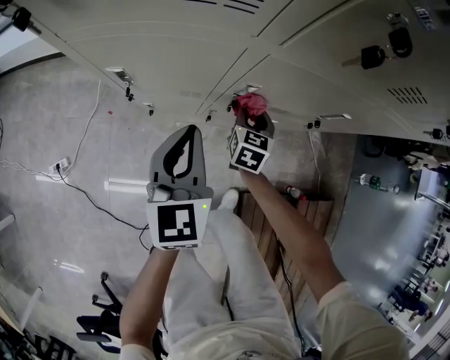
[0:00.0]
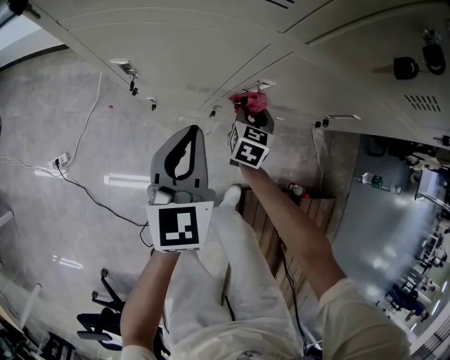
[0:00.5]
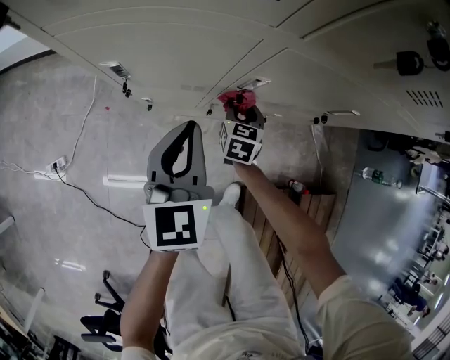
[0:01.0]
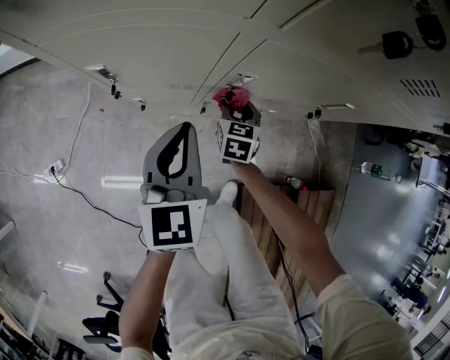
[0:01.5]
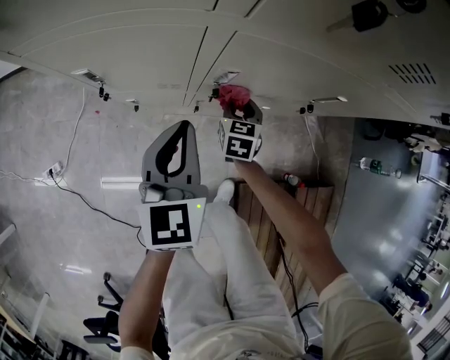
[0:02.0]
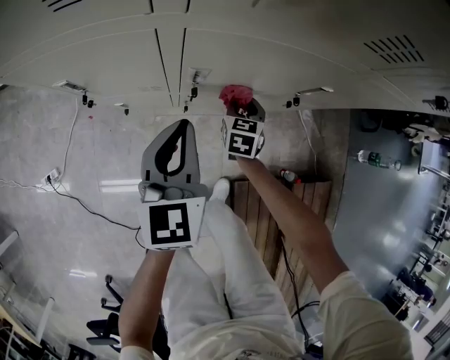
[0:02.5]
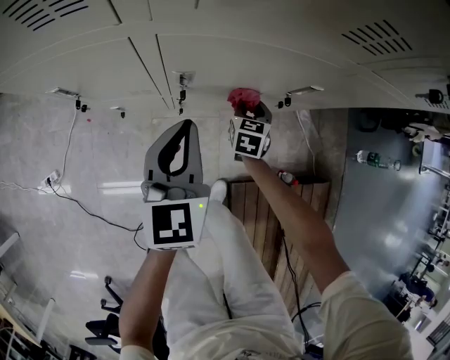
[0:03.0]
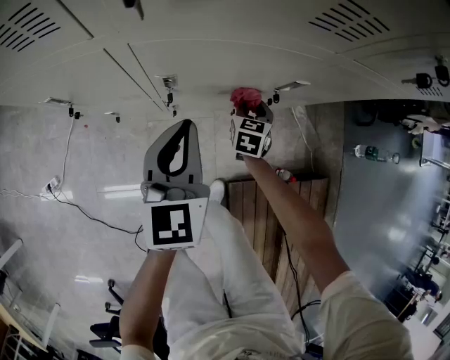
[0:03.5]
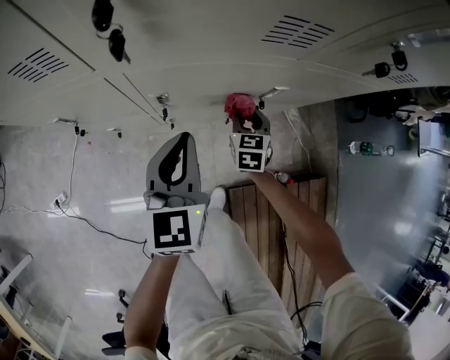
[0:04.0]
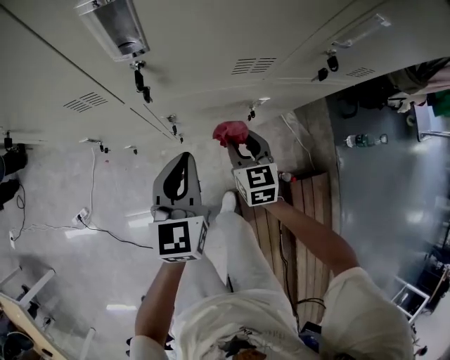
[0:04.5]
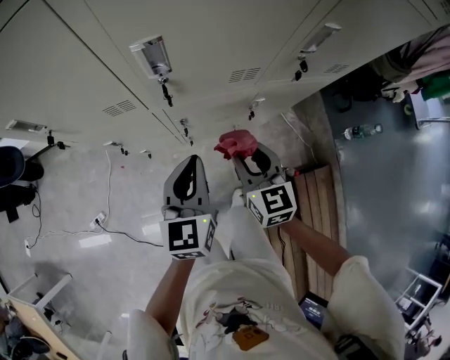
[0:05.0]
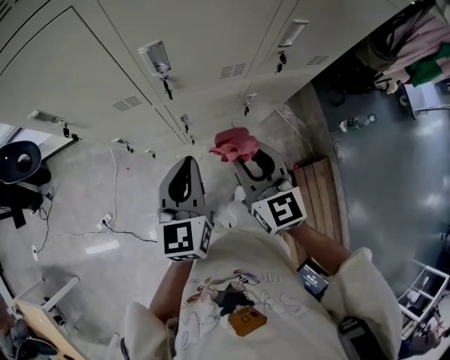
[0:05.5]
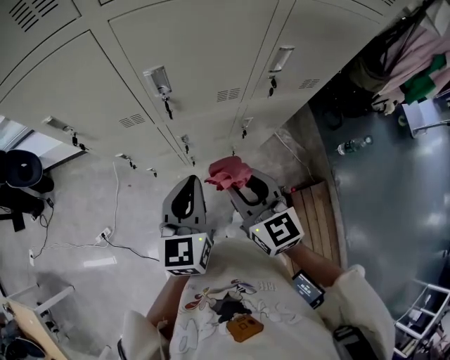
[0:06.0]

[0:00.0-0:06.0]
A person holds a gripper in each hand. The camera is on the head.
0:00.0 to 0:02.0: The right gripper heads downward, covering about 5 cm.
0:02.0 to 0:04.0: Both grippers travel together to the right and upward, about 15 cm.
0:04.0 to 0:06.0: The right gripper is displaced upward and backward by some 50 cm, and changes its angle by roughly 30 degrees. The left gripper heads upward and backward, covering approximately 30 cm.

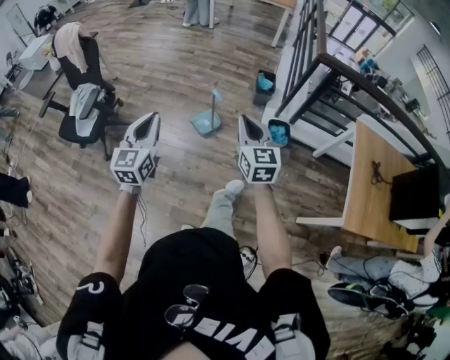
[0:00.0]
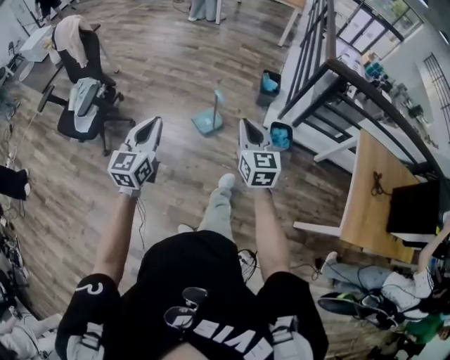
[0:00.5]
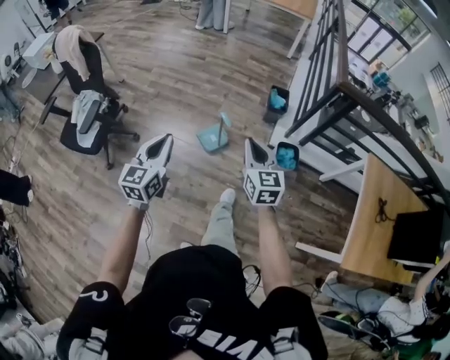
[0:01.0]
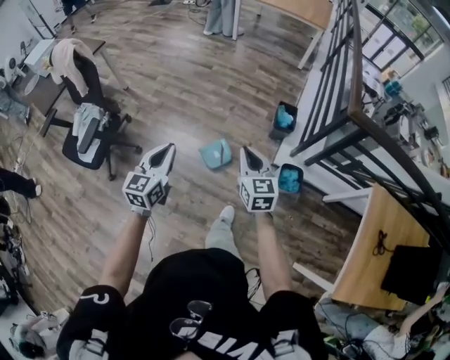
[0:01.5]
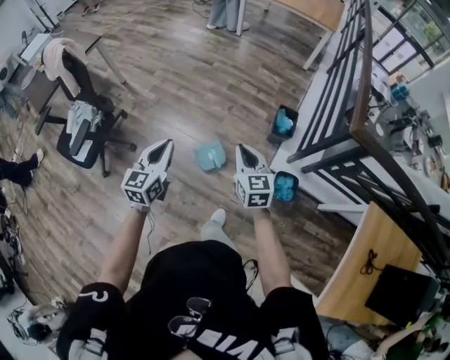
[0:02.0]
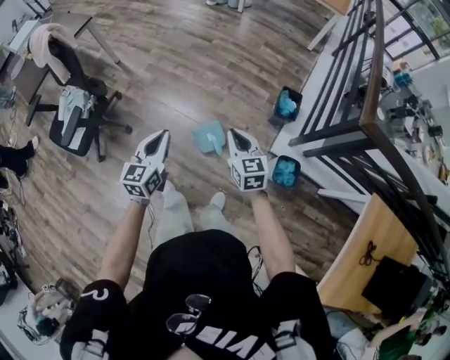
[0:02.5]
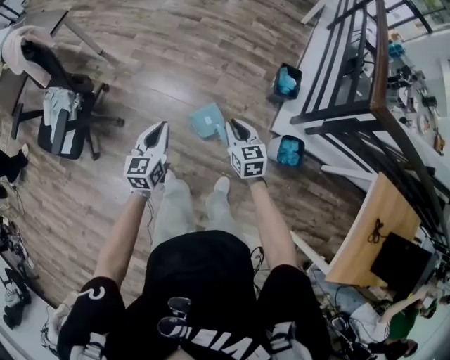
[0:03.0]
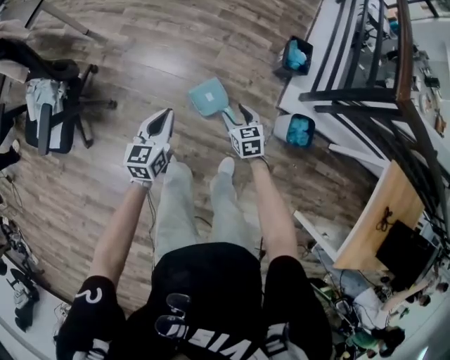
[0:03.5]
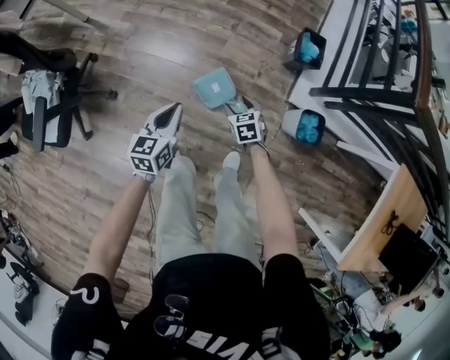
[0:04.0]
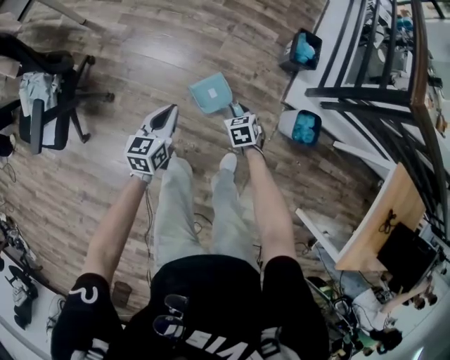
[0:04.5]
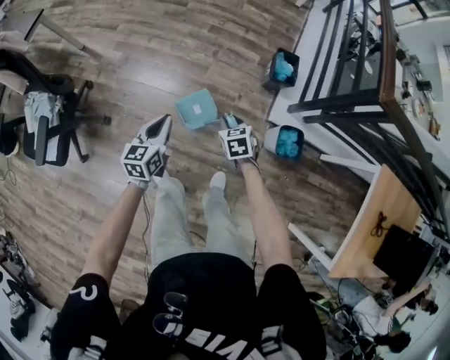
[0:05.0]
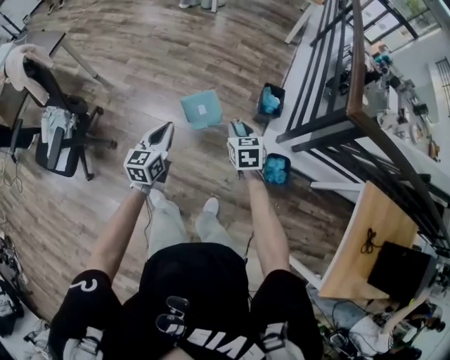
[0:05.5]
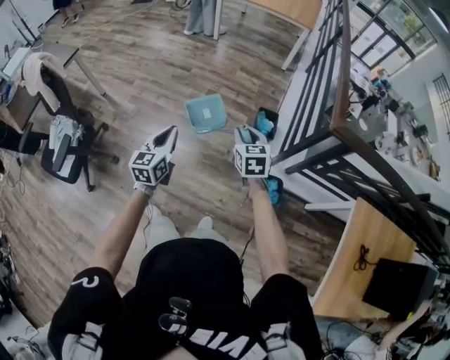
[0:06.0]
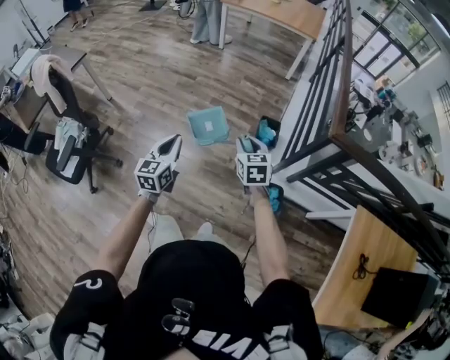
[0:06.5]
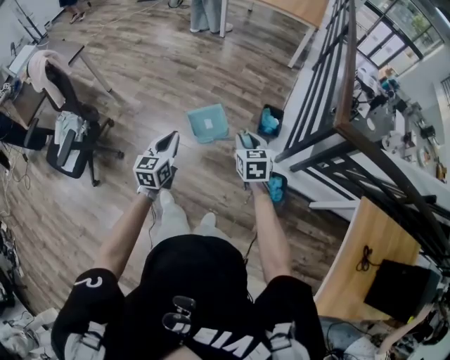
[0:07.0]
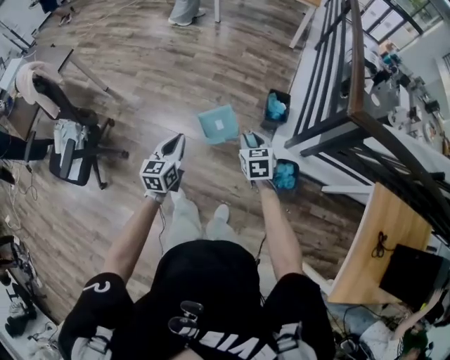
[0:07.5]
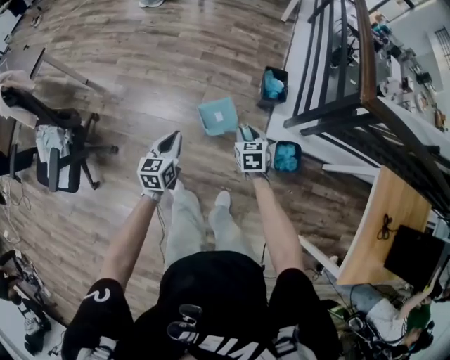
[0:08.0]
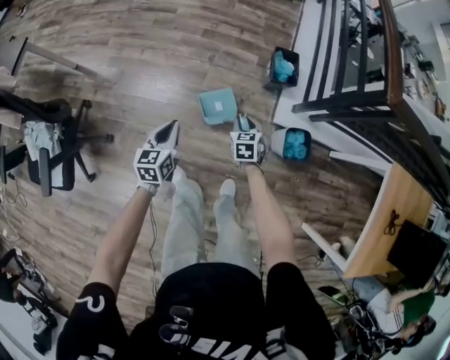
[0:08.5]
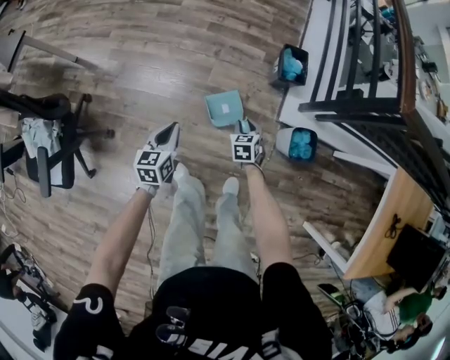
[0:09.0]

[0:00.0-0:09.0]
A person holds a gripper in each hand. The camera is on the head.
0:00.0 to 0:02.0: Both grippers travel together forward, roughly 40 cm.
0:02.0 to 0:04.5: Both grippers travel together downward, roughly 40 cm. The right gripper tilts its fingers some 40 degrees downward, and opens and closes again; the left gripper changes its angle by some 20 degrees.
0:04.5 to 0:07.0: The two grippers go some 35 cm upward and to the right. The right gripper changes its angle by some 30 degrees.
0:07.0 to 0:09.0: The right gripper is displaced downward by some 40 cm, and rotates roughly 30 degrees. The left gripper goes some 30 cm downward and to the left, and rotates about 20 degrees.

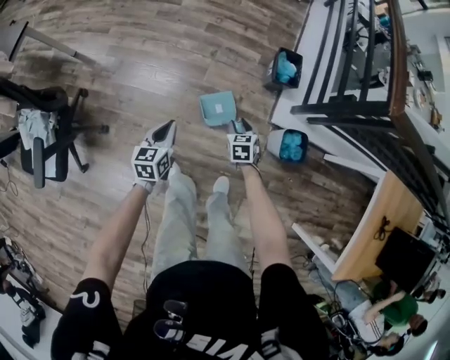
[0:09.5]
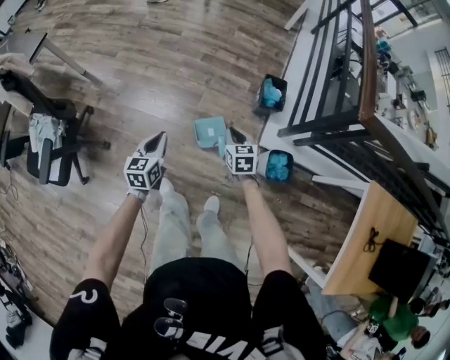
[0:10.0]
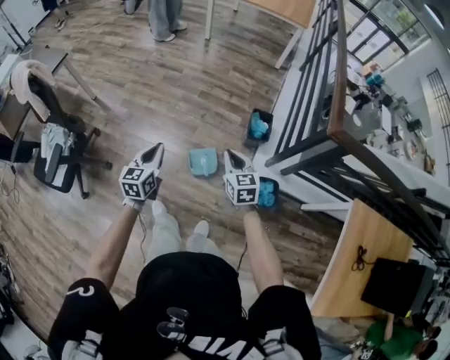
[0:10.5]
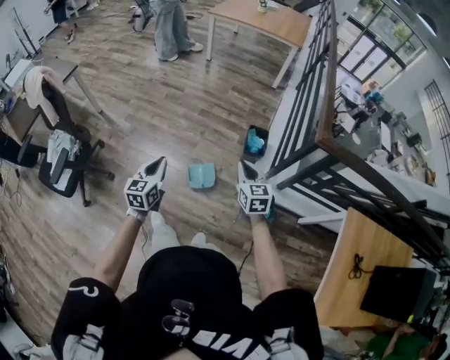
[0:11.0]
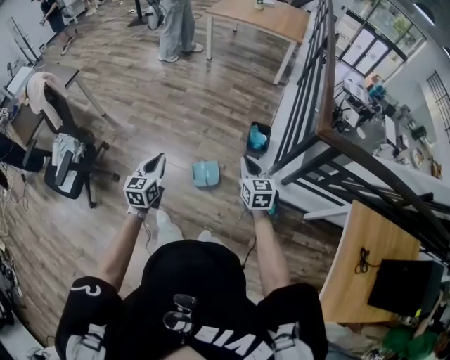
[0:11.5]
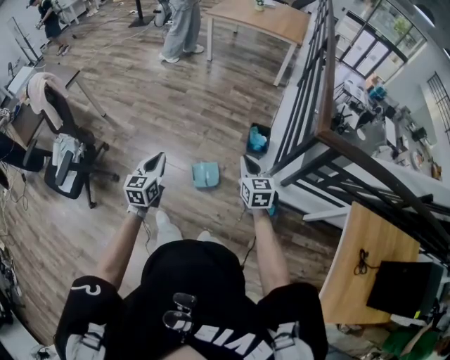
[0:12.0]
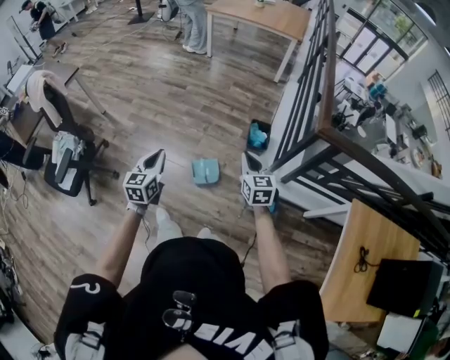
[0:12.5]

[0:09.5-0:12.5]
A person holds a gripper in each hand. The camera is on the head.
0:09.5 to 0:11.0: The right gripper goes some 40 cm upward, changes its angle by roughly 30 degrees, and closes up. Meanwhile the left gripper goes approximately 30 cm upward and backward.
0:11.0 to 0:12.5: The grippers move only a little.

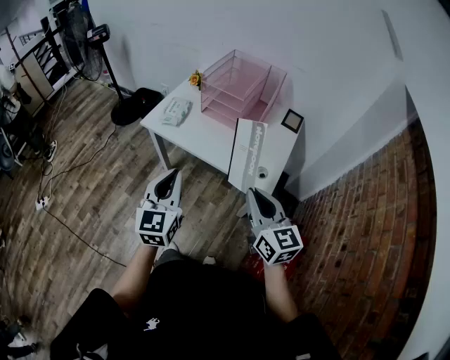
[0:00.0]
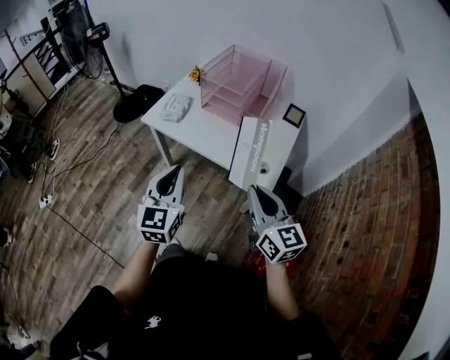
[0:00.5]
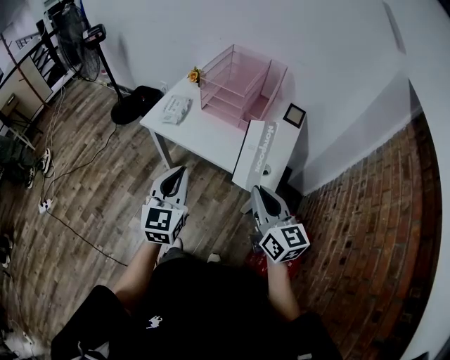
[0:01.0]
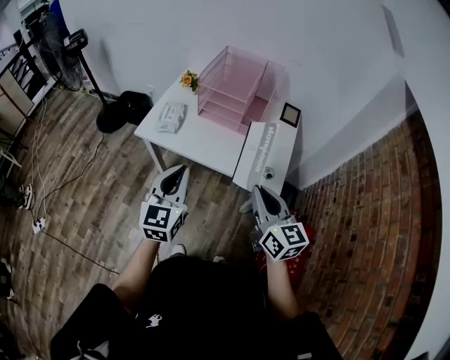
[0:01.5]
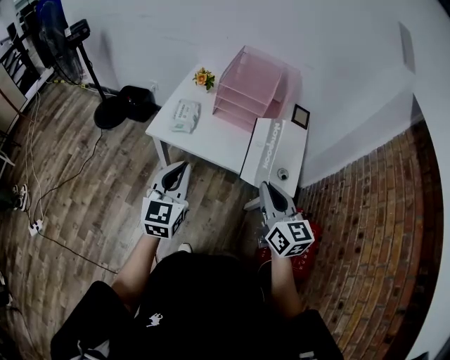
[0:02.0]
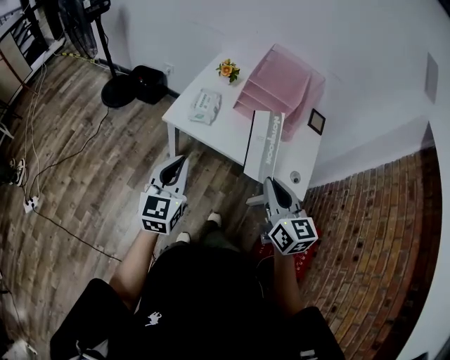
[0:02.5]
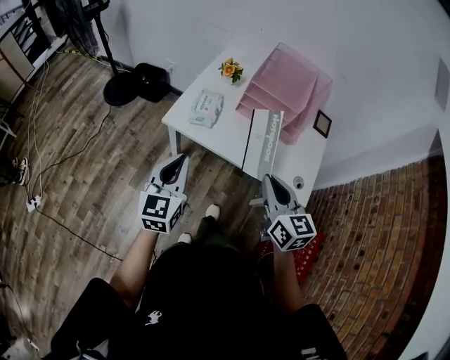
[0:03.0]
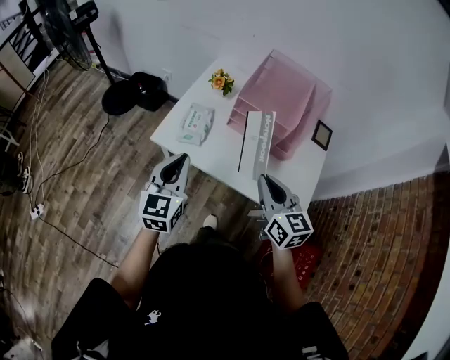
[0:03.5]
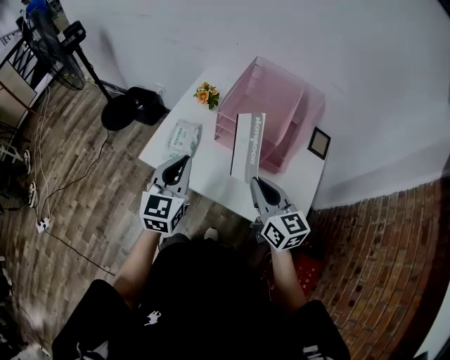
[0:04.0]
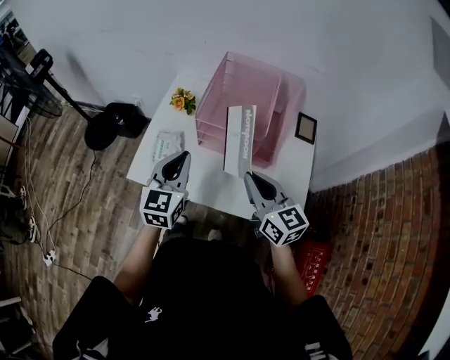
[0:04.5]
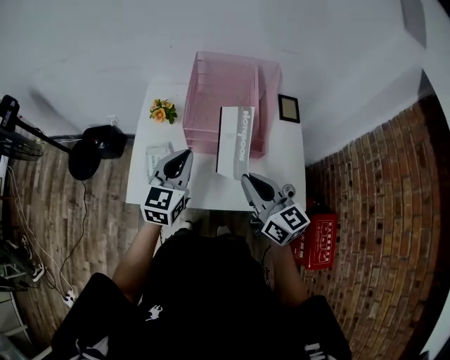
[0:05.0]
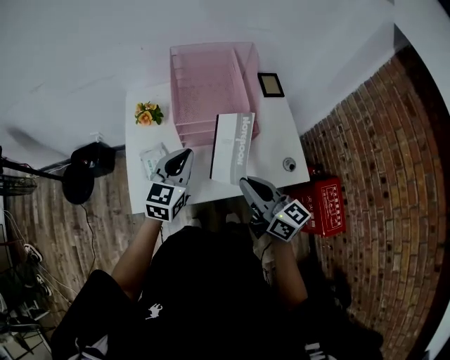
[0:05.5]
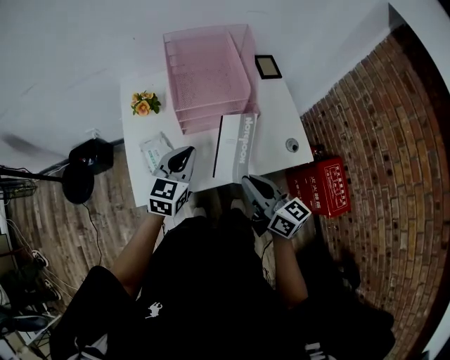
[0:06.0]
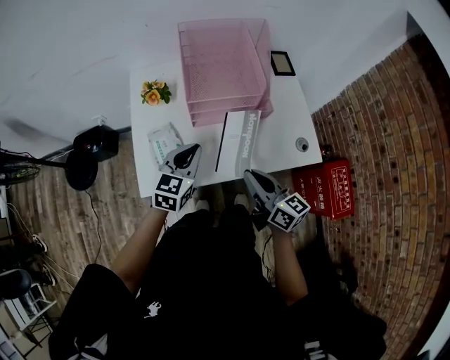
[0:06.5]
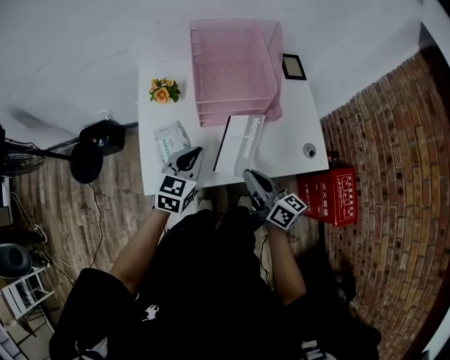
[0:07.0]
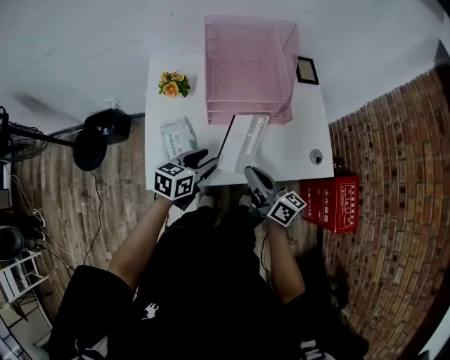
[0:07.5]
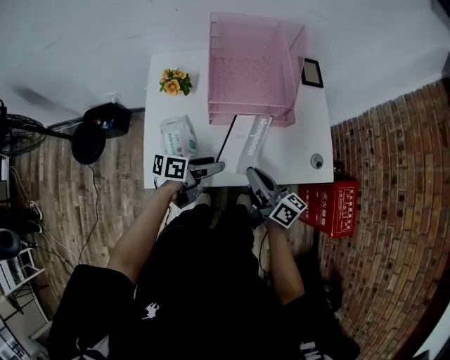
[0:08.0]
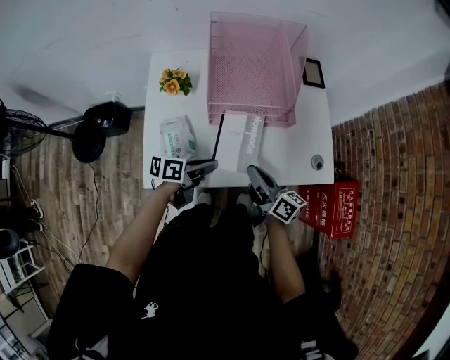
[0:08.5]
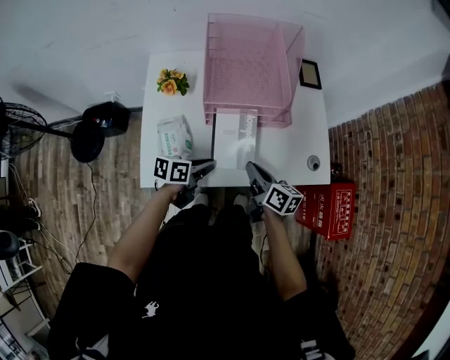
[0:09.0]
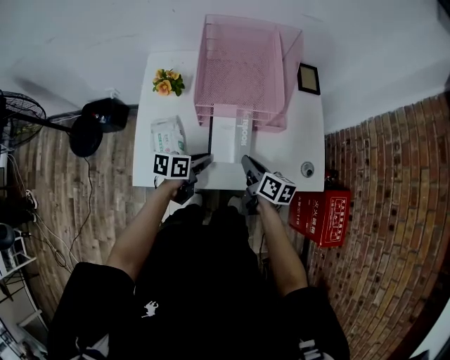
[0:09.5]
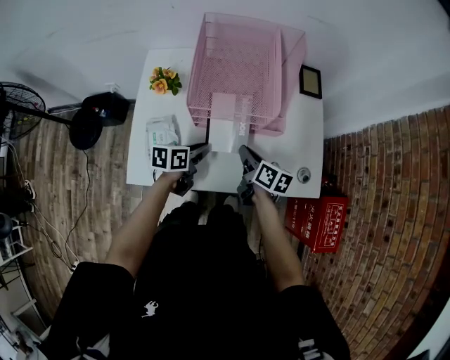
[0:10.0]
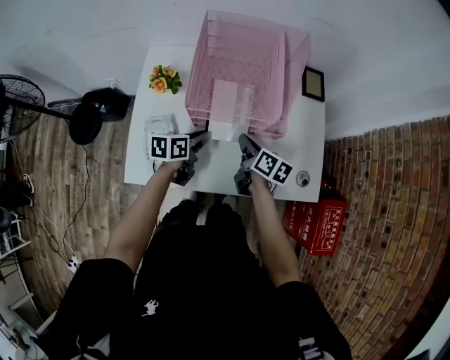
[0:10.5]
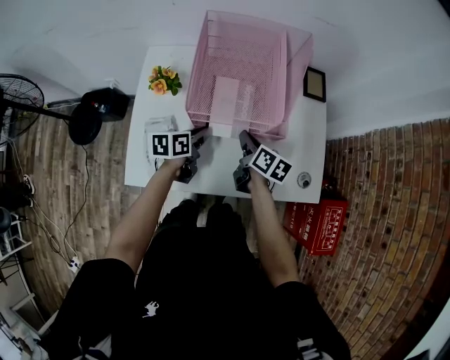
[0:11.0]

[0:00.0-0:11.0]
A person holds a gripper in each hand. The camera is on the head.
0:00.0 to 0:02.0: Both grippers move to the left and forward, some 15 cm.
0:02.0 to 0:03.5: Both grippers travel together forward, about 15 cm.
0:03.5 to 0:05.5: The right gripper changes its angle by some 30 degrees. Meanwhile the left gripper changes place by about 20 cm, and turns by roughly 40 degrees.
0:05.5 to 0:07.5: Both grippers travel together downward, roughly 10 cm. The left gripper rotates roughly 30 degrees, and opens its fingers.
0:07.5 to 0:09.0: The two grippers go roughly 5 cm downward. The left gripper turns by roughly 20 degrees, and closes its fingers.
0:09.0 to 0:11.0: Both grippers move forward, roughly 15 cm. The left gripper rotates approximately 20 degrees.
